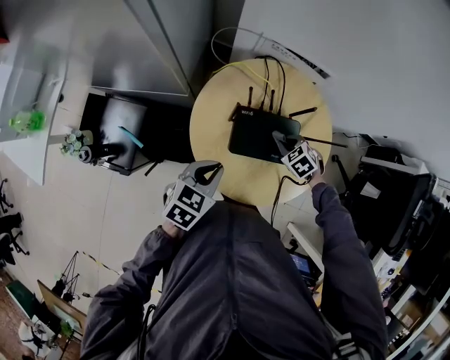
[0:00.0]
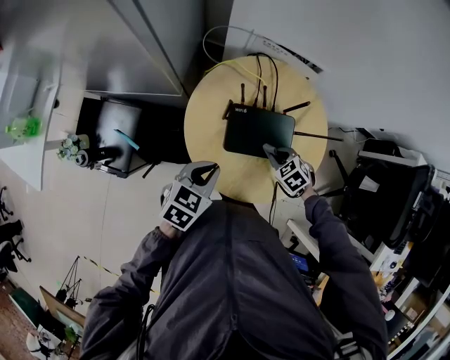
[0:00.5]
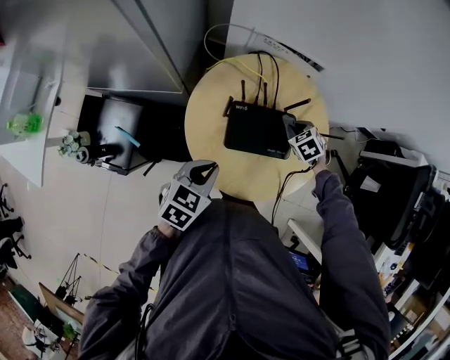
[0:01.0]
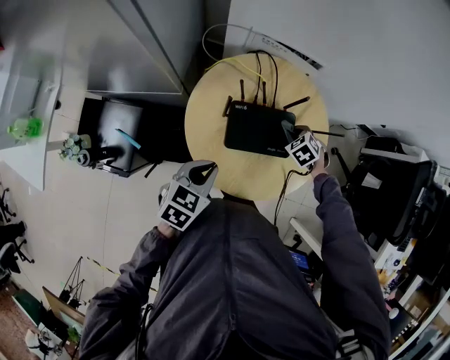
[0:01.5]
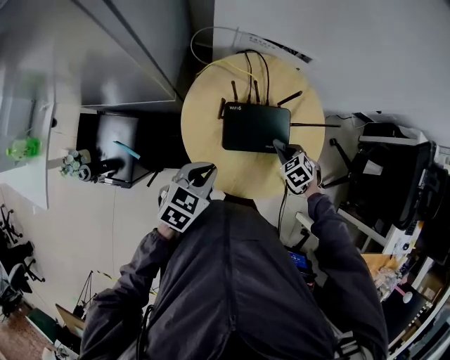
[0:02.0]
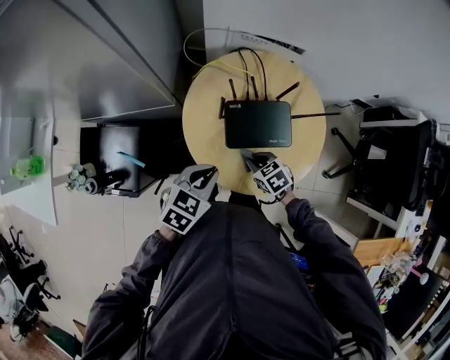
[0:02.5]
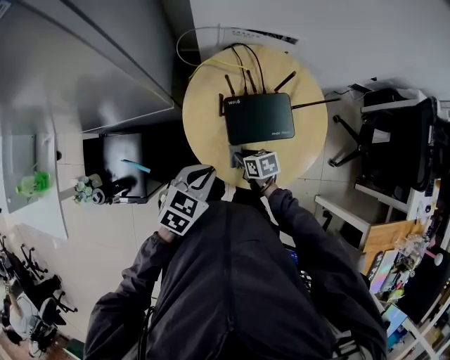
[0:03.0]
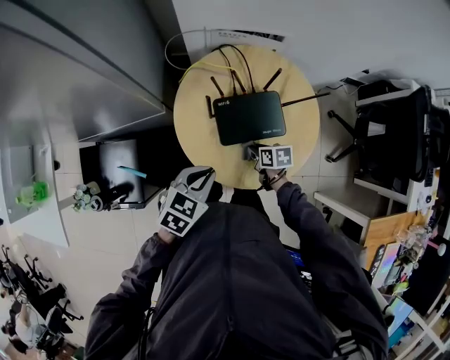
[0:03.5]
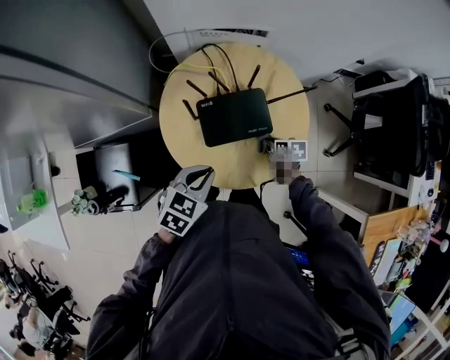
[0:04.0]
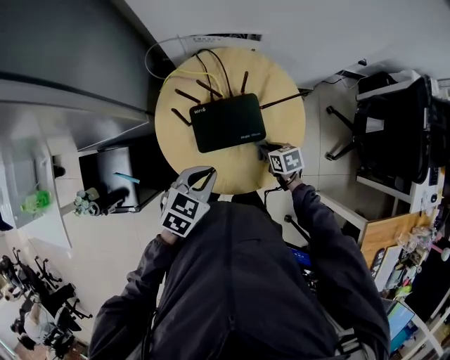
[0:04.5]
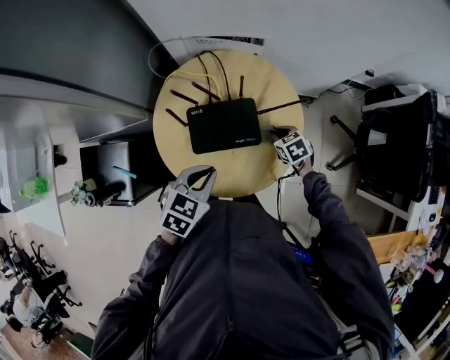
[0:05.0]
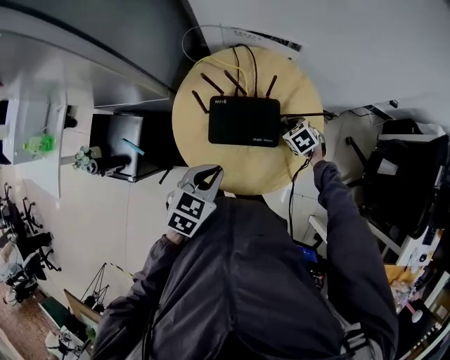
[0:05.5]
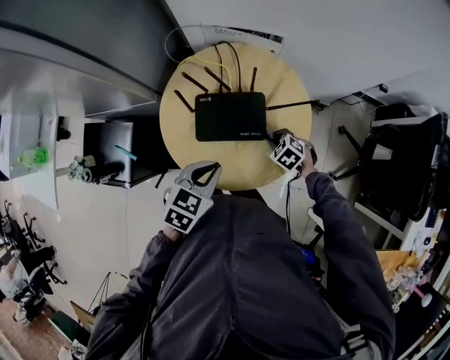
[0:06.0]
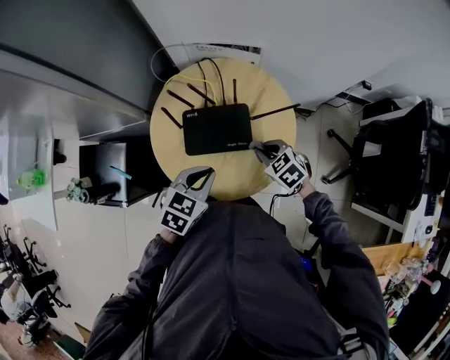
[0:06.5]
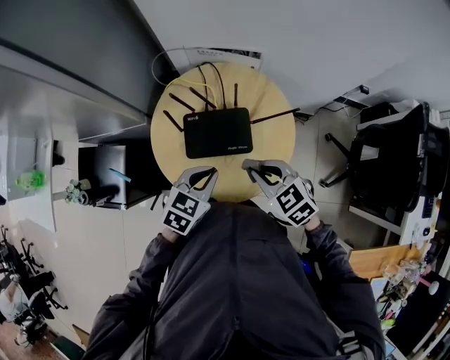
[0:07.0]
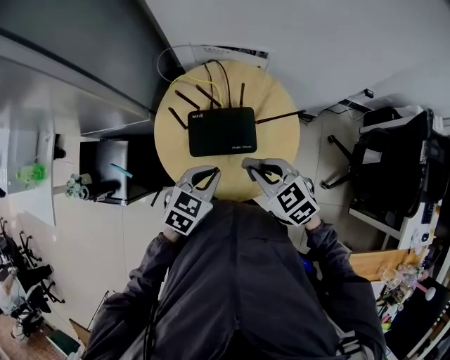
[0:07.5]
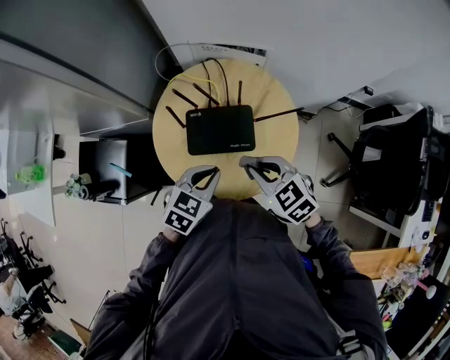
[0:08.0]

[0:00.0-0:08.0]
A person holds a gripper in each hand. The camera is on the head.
0:00.0 to 0:02.0: The right gripper moves forward and backward over about 10 cm, changing direction 2 times.
0:02.0 to 0:04.0: The right gripper travels to the left and back again, approximately 20 cm each way, and rolls clockwise, seen from behind, by some 60 degrees.
0:04.0 to 0:06.0: The left gripper heads to the right, covering roughly 10 cm. Meanwhile the right gripper moves about 10 cm forward and comes back, and rolls counterclockwise, seen from behind, by about 70 degrees.
0:06.0 to 0:08.0: The right gripper moves upward, roughly 20 cm, and changes its angle by approximately 30 degrees.

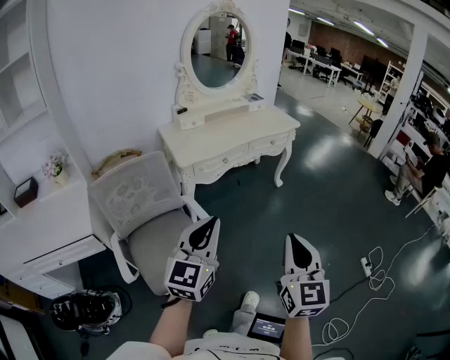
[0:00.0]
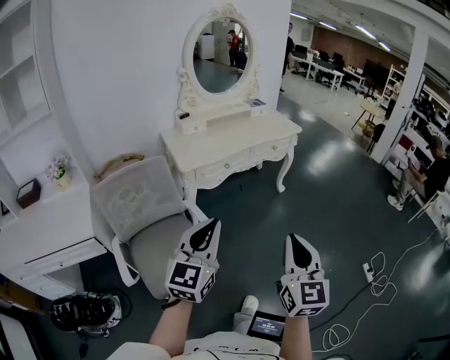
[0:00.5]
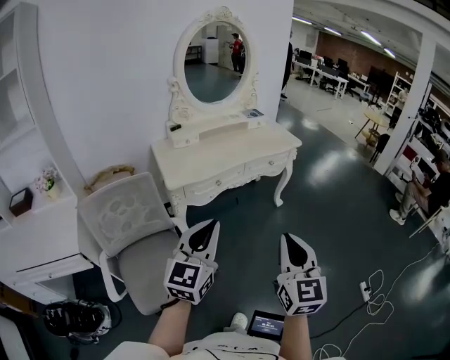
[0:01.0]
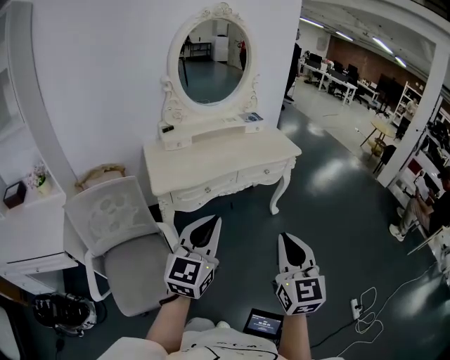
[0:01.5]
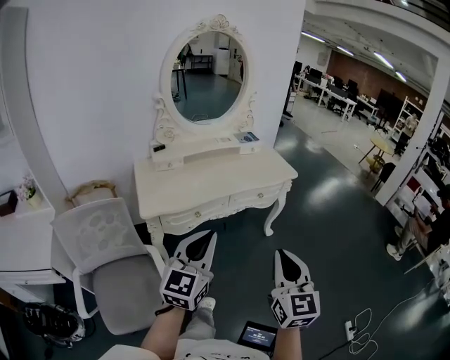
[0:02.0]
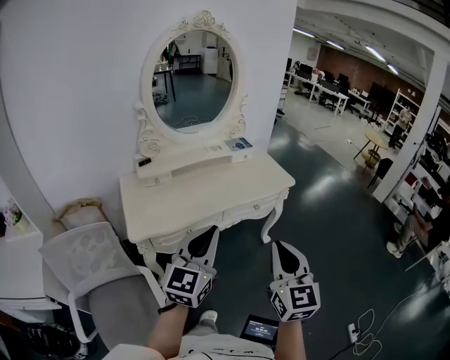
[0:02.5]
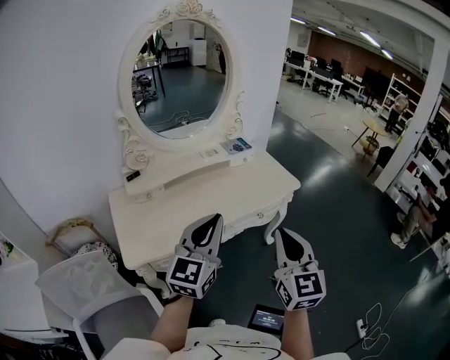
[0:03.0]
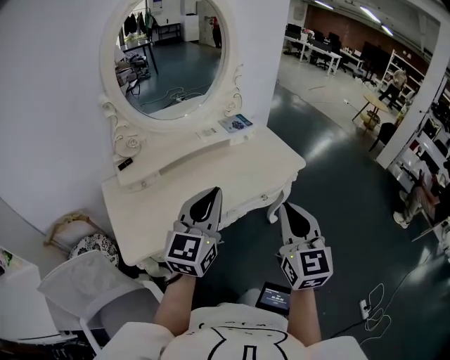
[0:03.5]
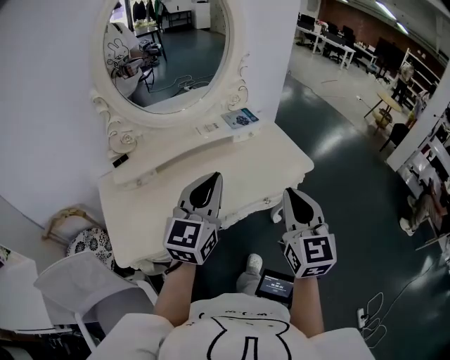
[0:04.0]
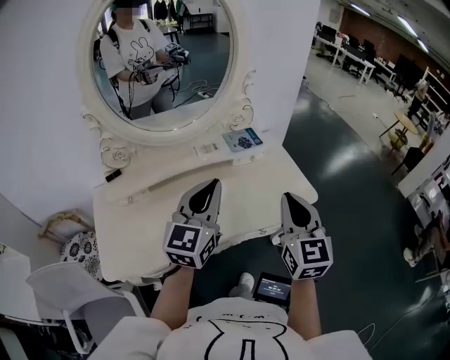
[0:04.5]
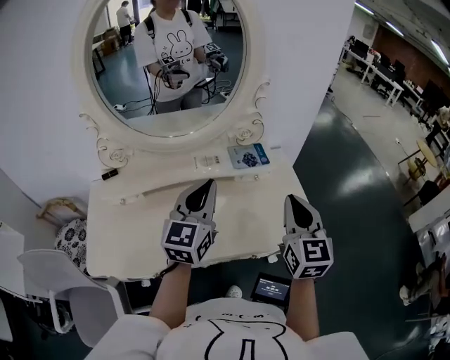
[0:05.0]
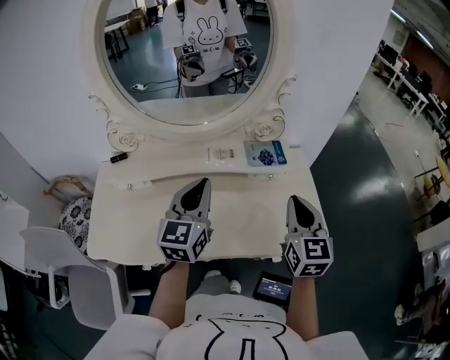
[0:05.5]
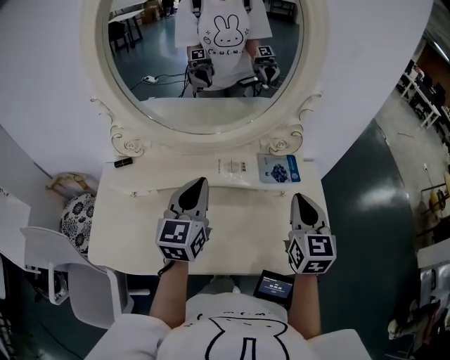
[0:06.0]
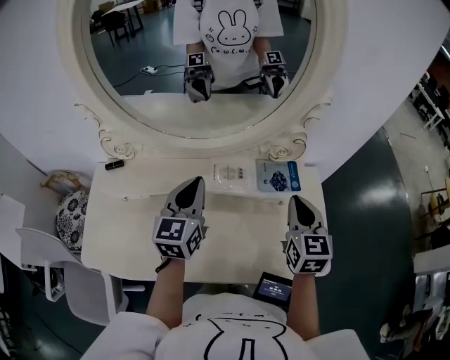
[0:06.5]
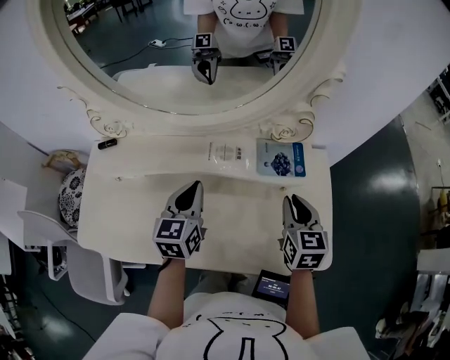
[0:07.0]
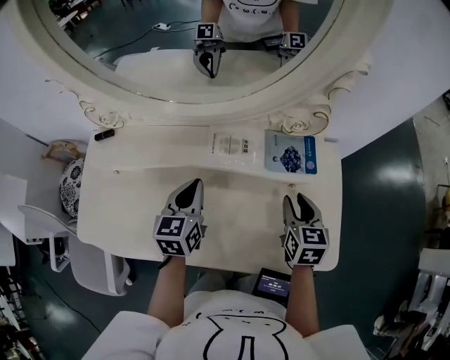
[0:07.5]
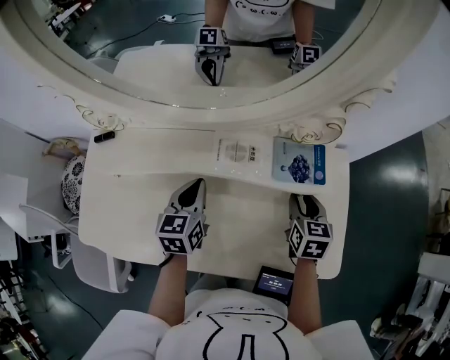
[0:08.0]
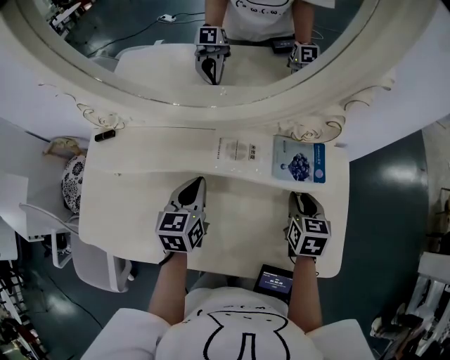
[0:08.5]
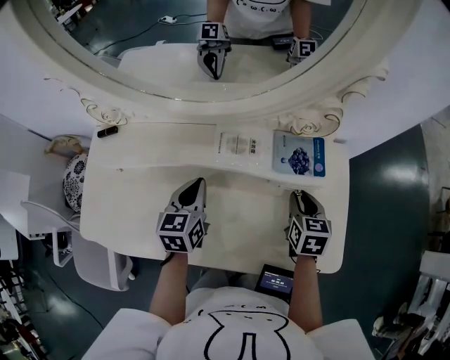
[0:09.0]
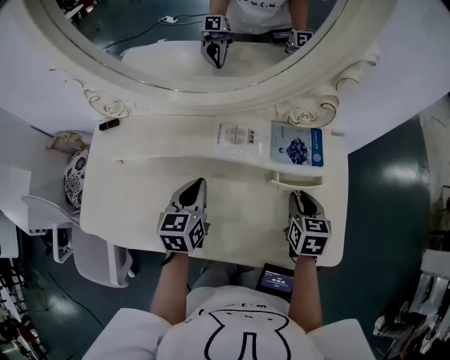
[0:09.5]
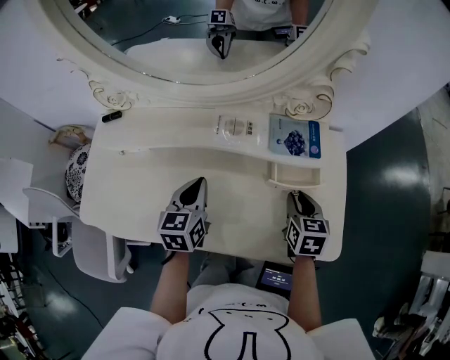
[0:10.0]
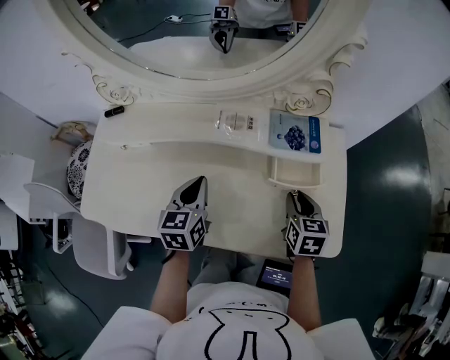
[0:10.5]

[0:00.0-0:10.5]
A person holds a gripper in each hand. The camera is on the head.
0:00.0 to 0:02.0: The right gripper moves forward, approximately 30 cm. Meanwhile the left gripper is displaced forward and to the right by approximately 30 cm.
0:02.0 to 0:04.0: The grippers both shift forward by about 40 cm.
0:04.0 to 0:06.5: The left gripper changes place by approximately 30 cm, and changes its angle by some 40 degrees, while the right gripper shifts by some 40 cm, and changes its angle by roughly 30 degrees.
0:06.5 to 0:08.5: Both grippers travel together downward, approximately 15 cm. The left gripper swivels about 20 degrees. The right gripper changes its angle by some 30 degrees, and opens.
0:08.5 to 0:10.5: The two grippers go roughly 10 cm backward.

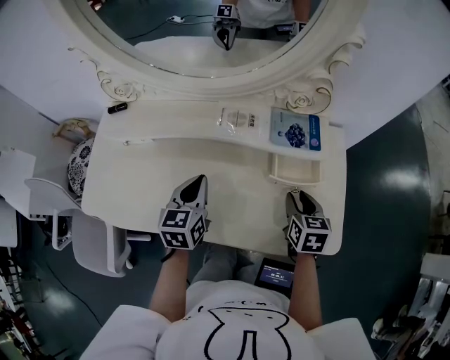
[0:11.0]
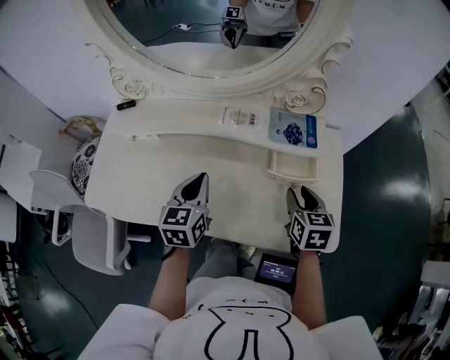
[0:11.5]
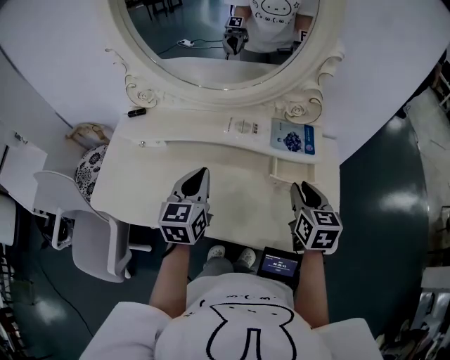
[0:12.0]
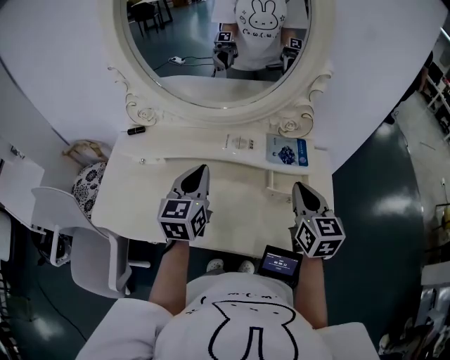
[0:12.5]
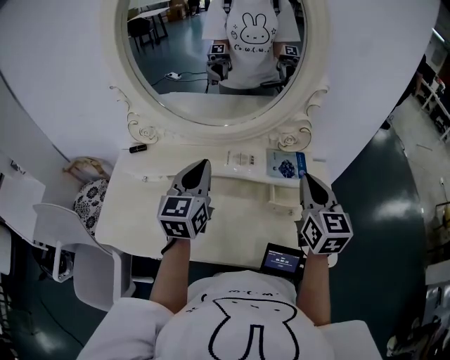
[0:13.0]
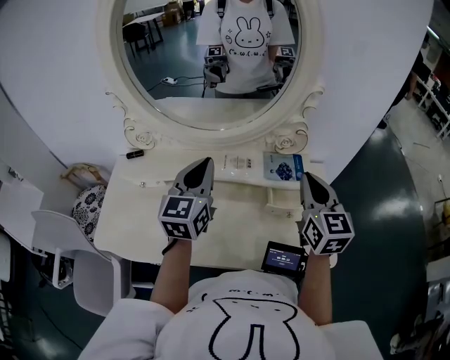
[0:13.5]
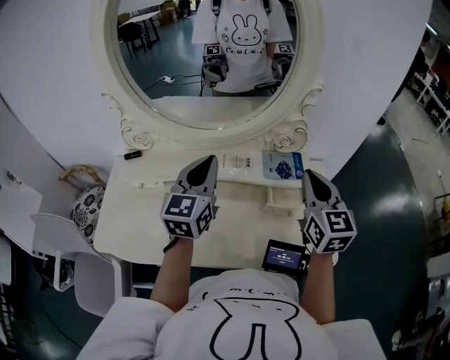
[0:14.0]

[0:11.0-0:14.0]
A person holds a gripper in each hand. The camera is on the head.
0:11.0 to 0:12.5: Both grippers move upward, roughly 15 cm. The right gripper turns by roughly 30 degrees, and closes.
0:12.5 to 0:14.0: The left gripper heads upward and forward, covering some 10 cm, while the right gripper moves upward, roughly 10 cm.

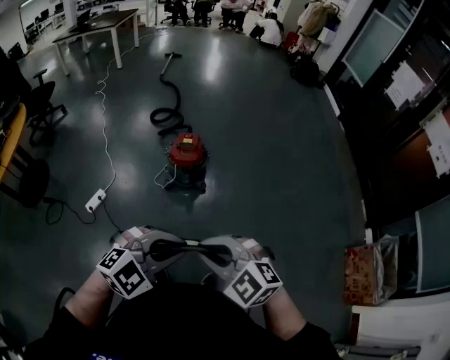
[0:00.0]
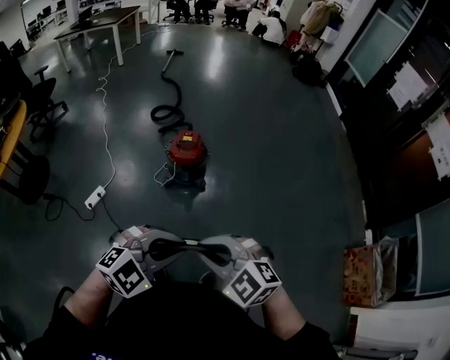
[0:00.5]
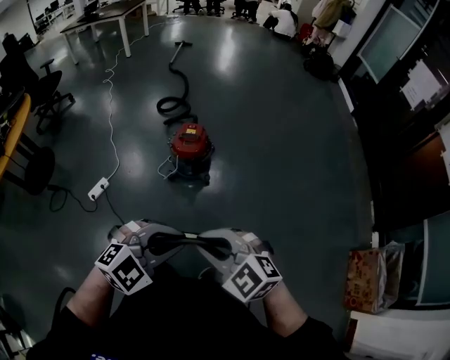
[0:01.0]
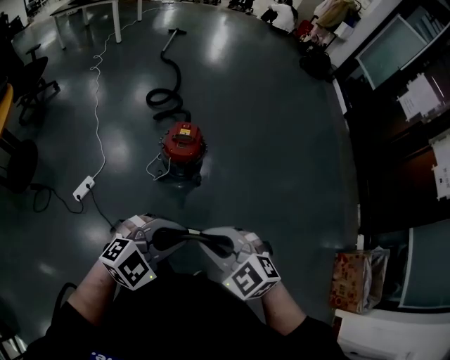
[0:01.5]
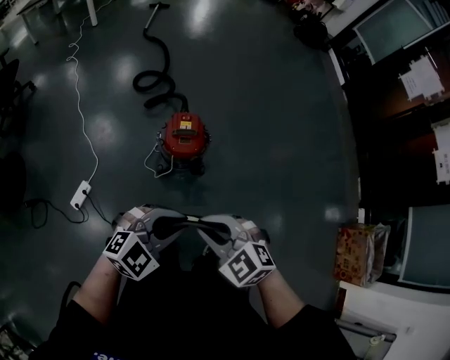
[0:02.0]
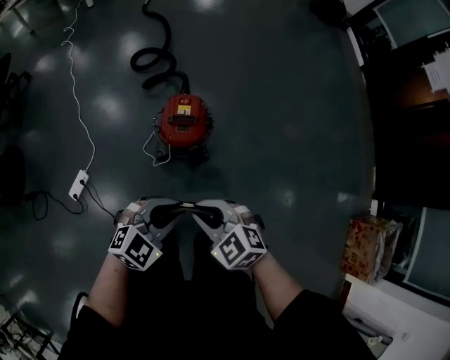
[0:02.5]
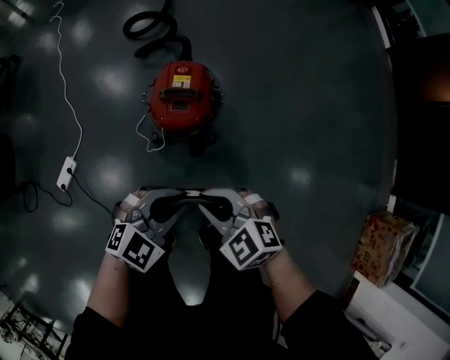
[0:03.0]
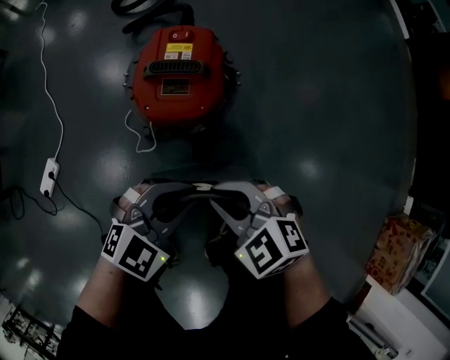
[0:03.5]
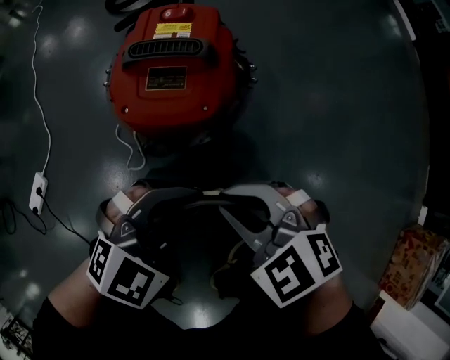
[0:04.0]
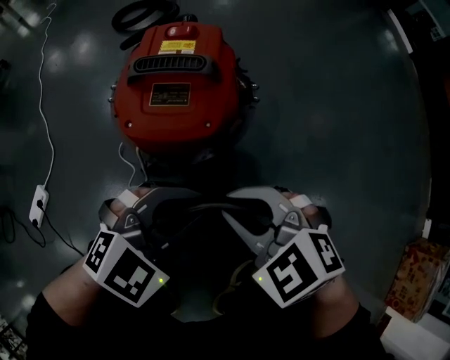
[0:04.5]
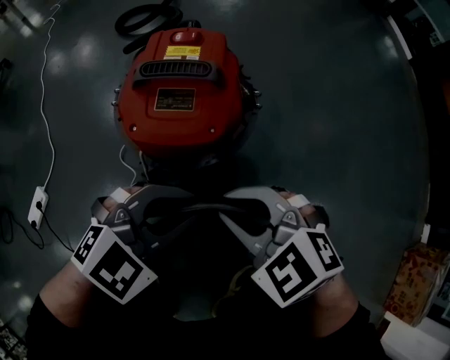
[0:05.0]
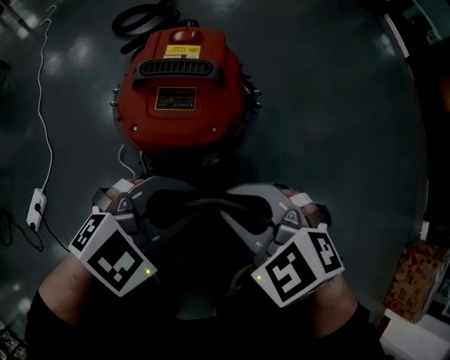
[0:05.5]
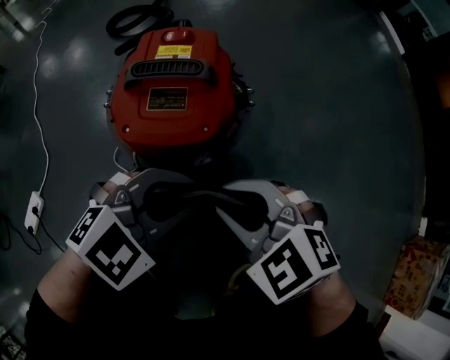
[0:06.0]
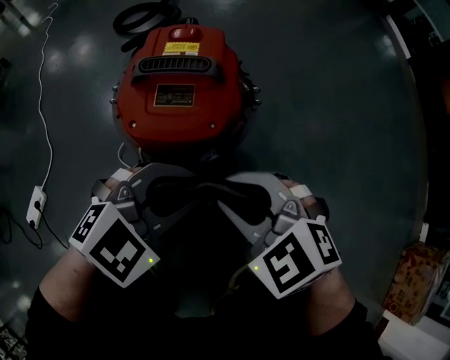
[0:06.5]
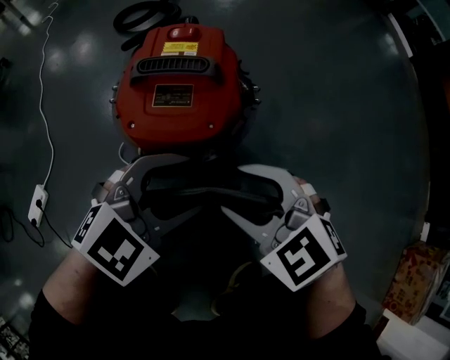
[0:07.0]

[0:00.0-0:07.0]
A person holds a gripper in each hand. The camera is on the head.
0:00.0 to 0:02.0: Both grippers move forward and downward, some 25 cm.
0:02.0 to 0:03.5: The two grippers go about 40 cm downward.
0:03.5 to 0:05.0: The two grippers go roughly 10 cm downward.
0:05.0 to 0:07.0: The left gripper opens its fingers. Meanwhile the right gripper opens up.
